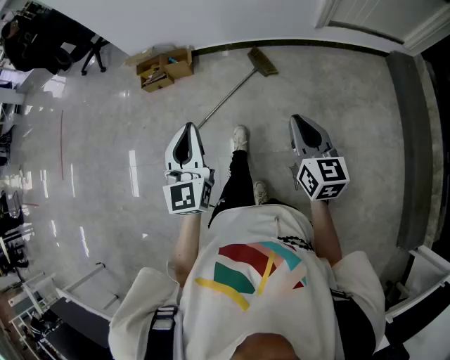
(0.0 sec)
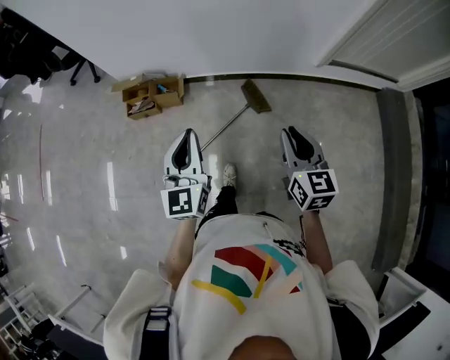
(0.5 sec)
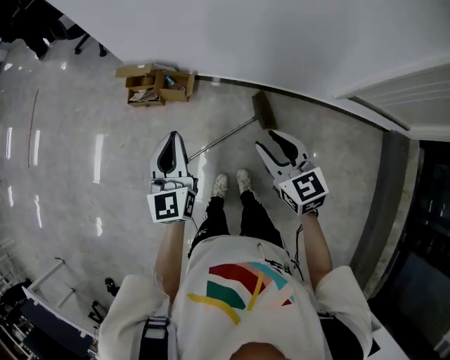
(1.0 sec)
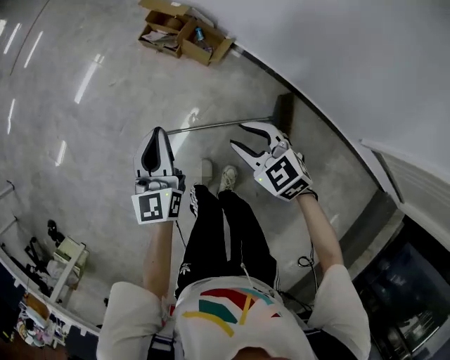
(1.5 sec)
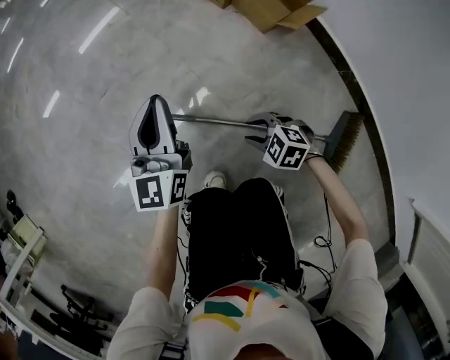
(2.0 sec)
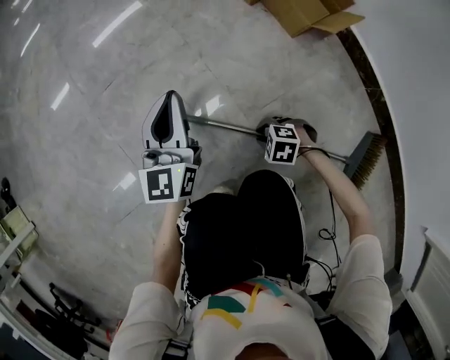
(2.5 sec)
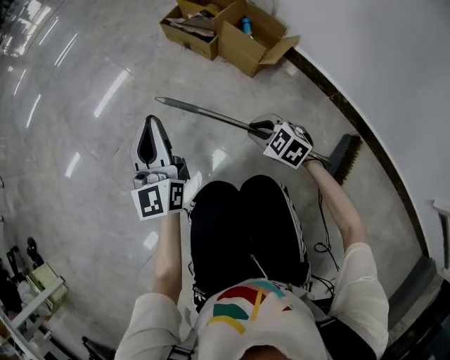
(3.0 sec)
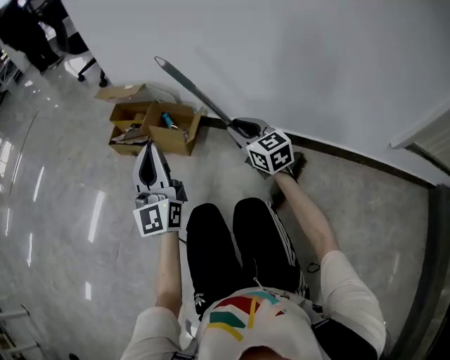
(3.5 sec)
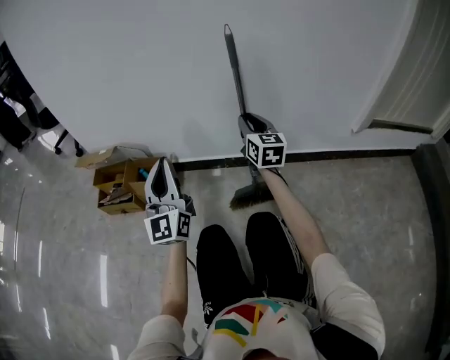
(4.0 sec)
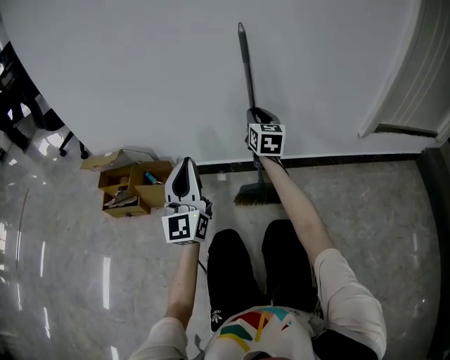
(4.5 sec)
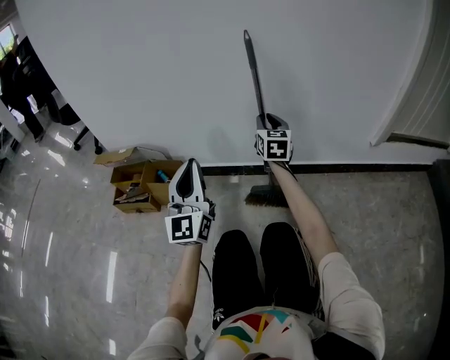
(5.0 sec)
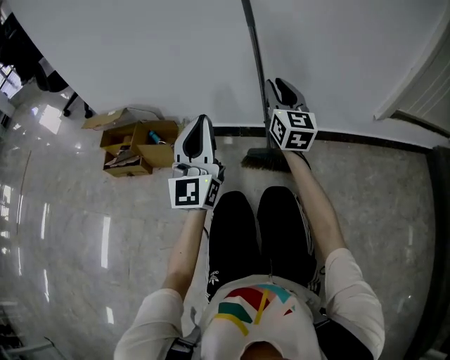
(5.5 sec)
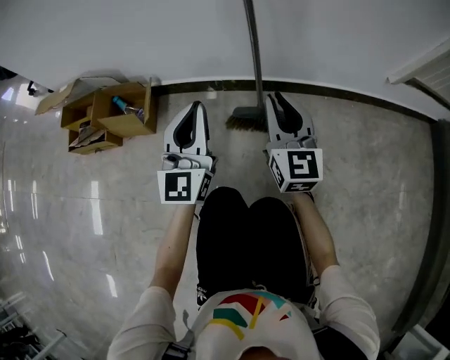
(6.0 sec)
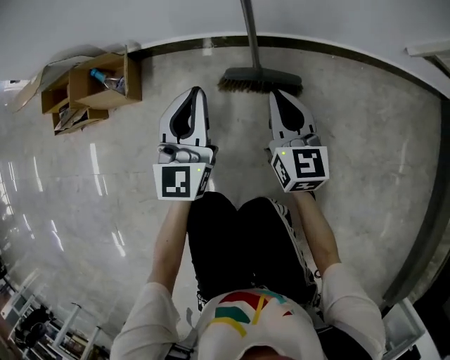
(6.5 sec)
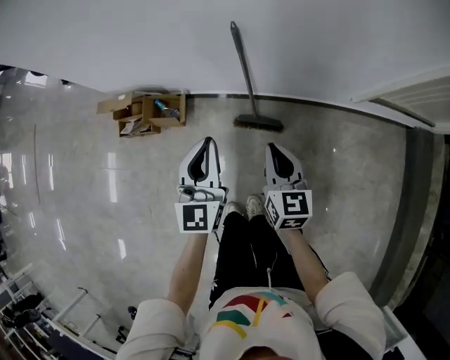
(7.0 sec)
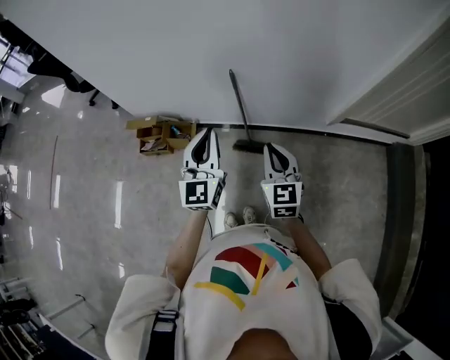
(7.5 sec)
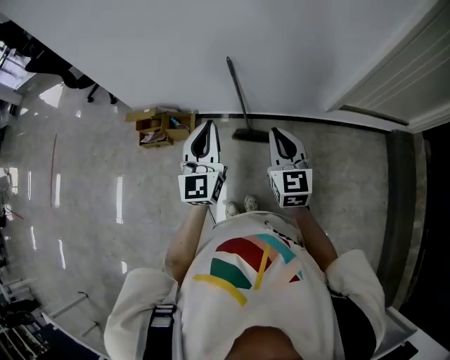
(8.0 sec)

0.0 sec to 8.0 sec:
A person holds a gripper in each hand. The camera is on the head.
0.0 sec to 2.0 sec: Both grippers are carried about 50 cm. Both grippers move downward, approximately 70 cm. The left gripper rotates roughly 60 degrees. Meanwhile the right gripper tips its fingers downward by roughly 40 degrees, and opens its fingers.
2.0 sec to 4.0 sec: The left gripper moves roughly 40 cm, and changes its angle by about 60 degrees. The right gripper changes place by about 60 cm, and tips its fingers upward by some 60 degrees.
4.0 sec to 6.0 sec: The right gripper travels downward and backward by approximately 15 cm, while the left gripper moves downward and to the right, approximately 20 cm.
6.0 sec to 8.0 sec: Both grippers travel together upward, about 60 cm.

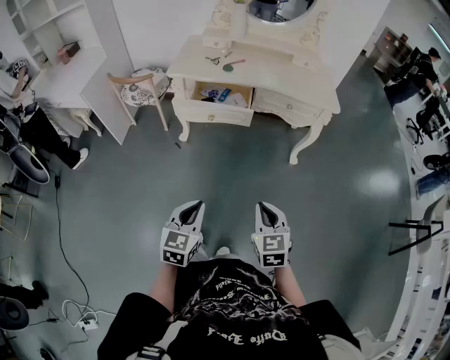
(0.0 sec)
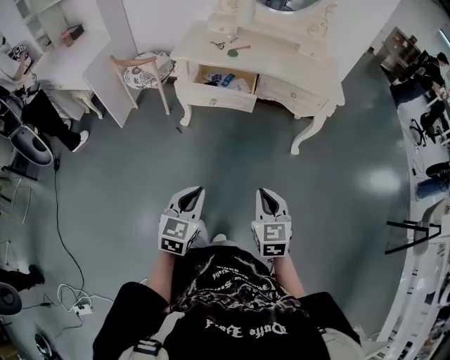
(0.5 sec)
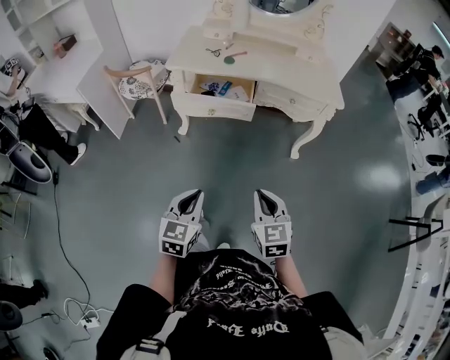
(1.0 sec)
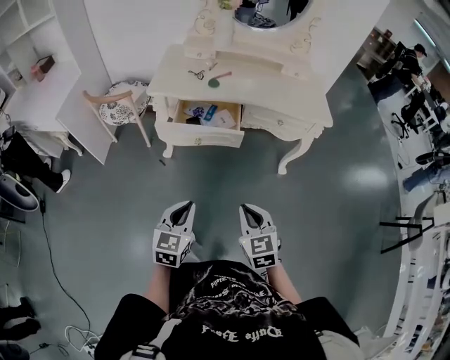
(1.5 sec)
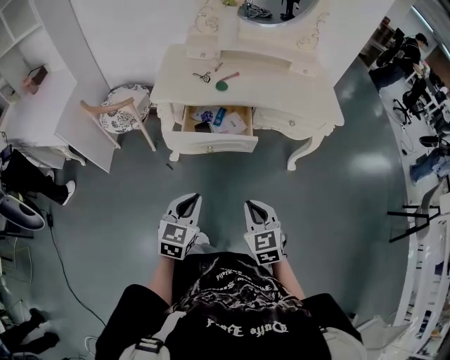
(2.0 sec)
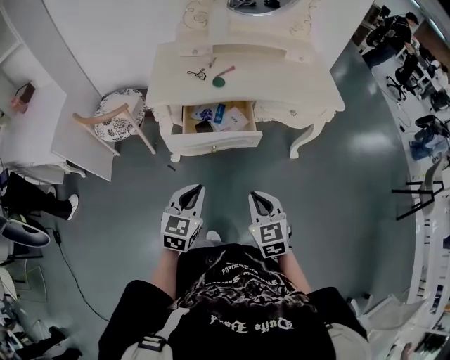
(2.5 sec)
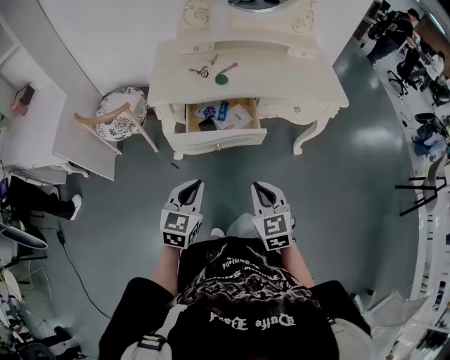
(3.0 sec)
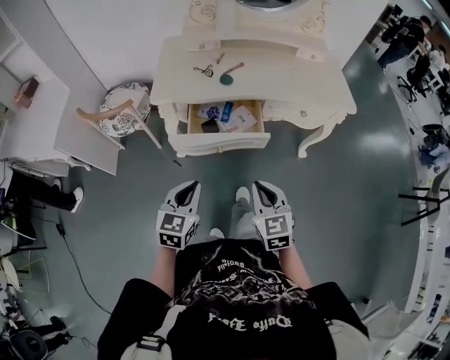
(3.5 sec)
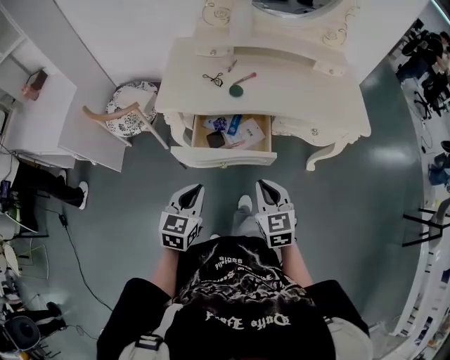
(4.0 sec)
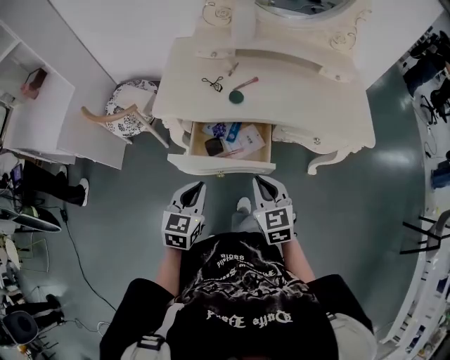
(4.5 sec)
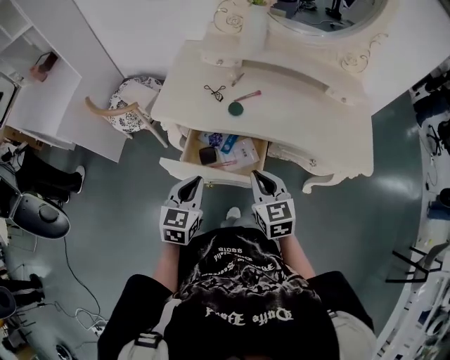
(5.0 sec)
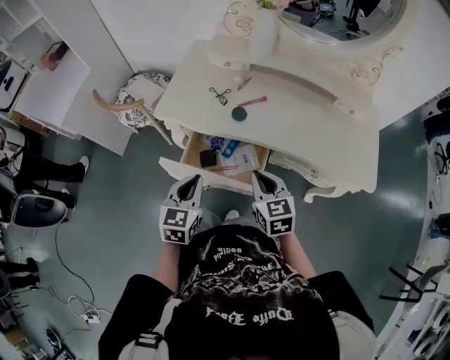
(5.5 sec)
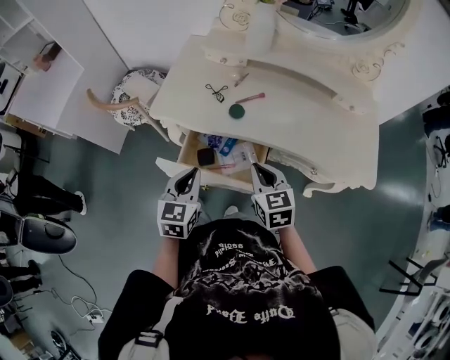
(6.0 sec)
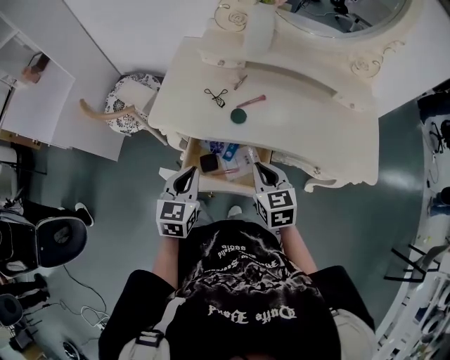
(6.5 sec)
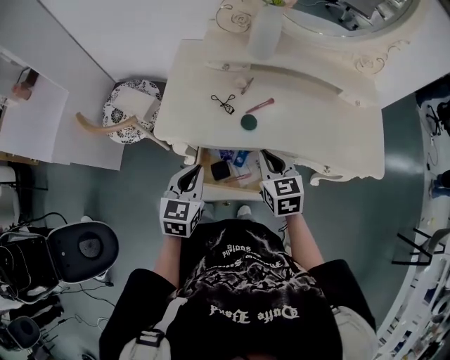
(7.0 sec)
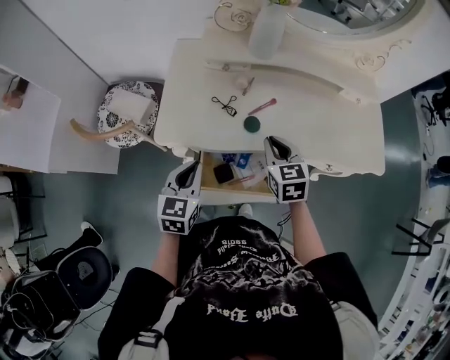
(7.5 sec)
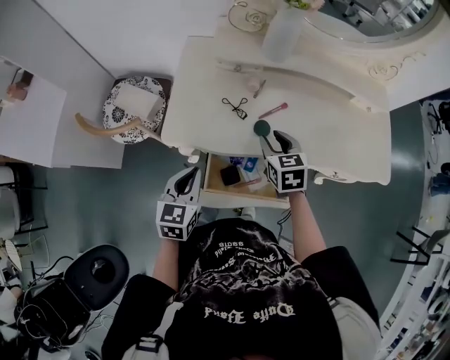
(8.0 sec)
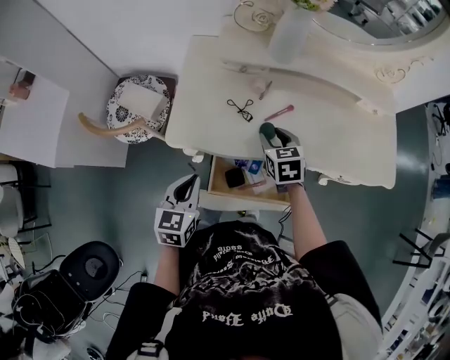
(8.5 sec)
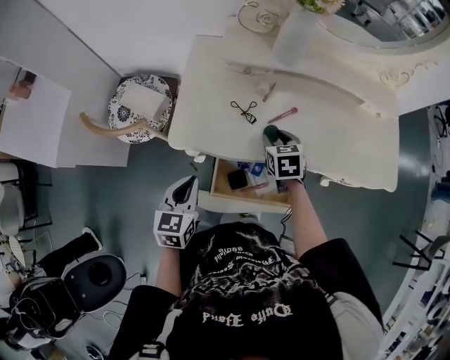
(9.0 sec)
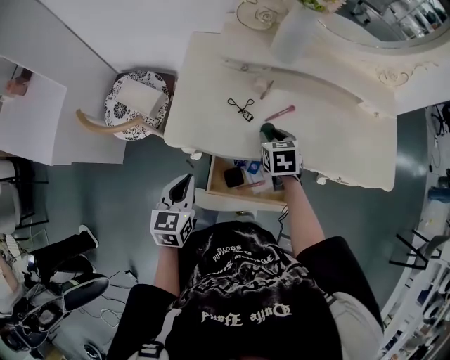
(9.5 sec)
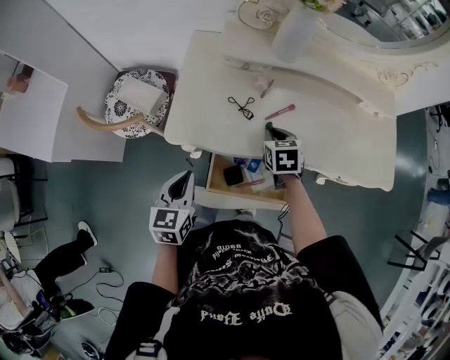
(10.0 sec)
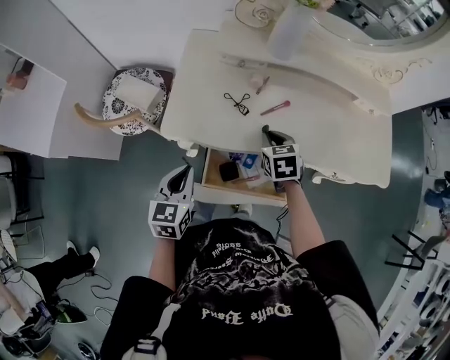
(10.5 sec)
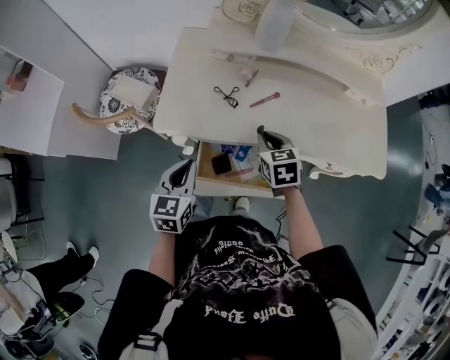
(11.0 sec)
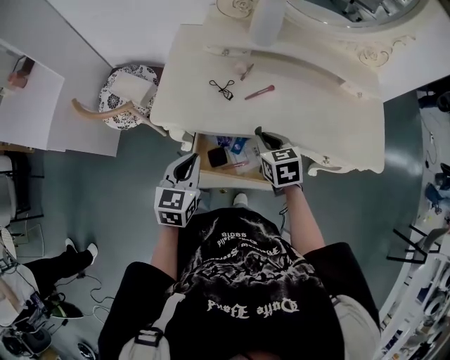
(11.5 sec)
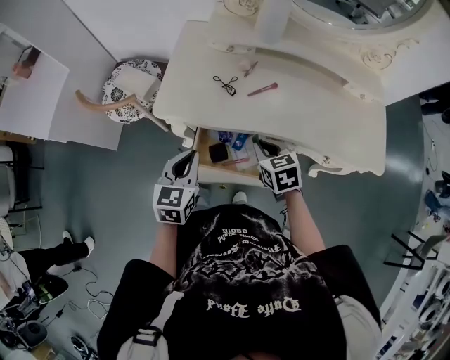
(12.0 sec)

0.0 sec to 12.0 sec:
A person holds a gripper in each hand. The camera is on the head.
0.0 sec to 2.0 sec: The right gripper goes some 20 cm forward and to the left. Meanwhile the left gripper shifts roughly 20 cm forward.
2.0 sec to 4.0 sec: The grippers both shift forward by roughly 15 cm.
4.0 sec to 6.0 sec: The right gripper travels forward by approximately 15 cm. The left gripper travels forward and to the right by some 15 cm.
6.0 sec to 8.0 sec: The right gripper shifts approximately 15 cm forward, and opens; the left gripper moves to the left and forward, about 15 cm.
8.0 sec to 10.0 sec: The right gripper is displaced downward by roughly 5 cm, and closes.
10.0 sec to 12.0 sec: The left gripper moves to the right, roughly 5 cm, while the right gripper travels backward by approximately 15 cm.

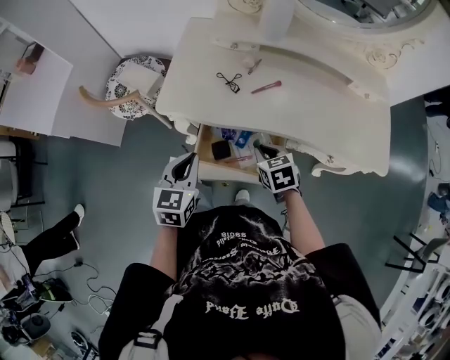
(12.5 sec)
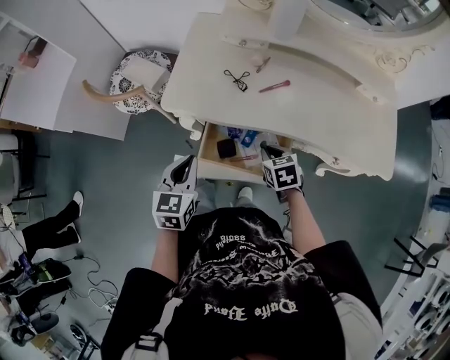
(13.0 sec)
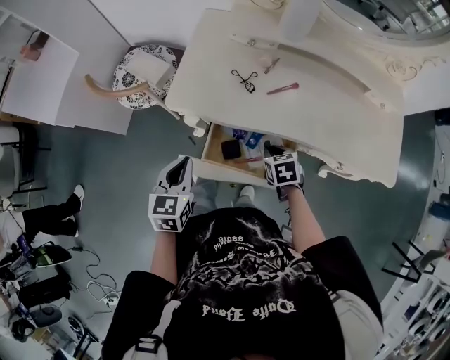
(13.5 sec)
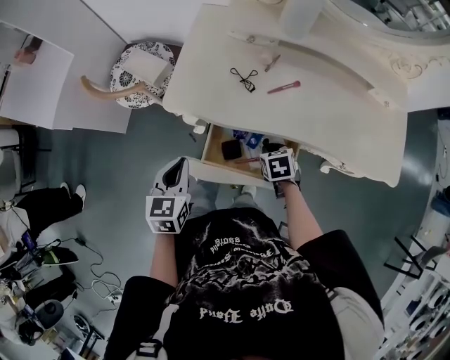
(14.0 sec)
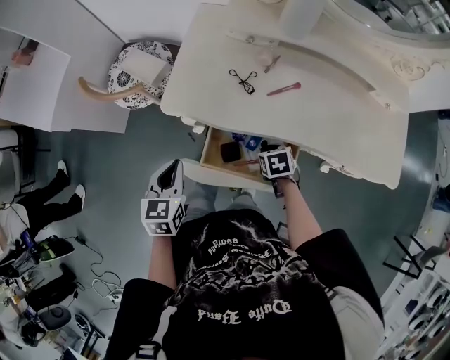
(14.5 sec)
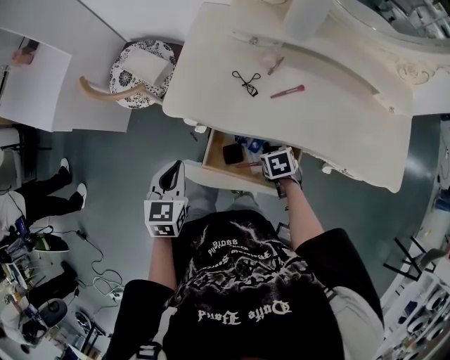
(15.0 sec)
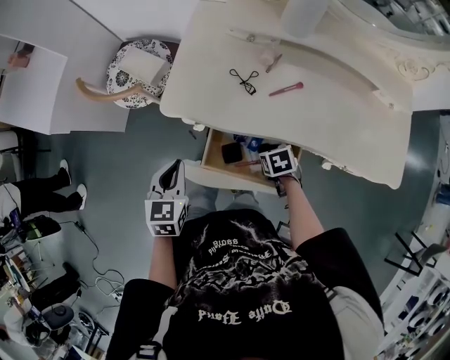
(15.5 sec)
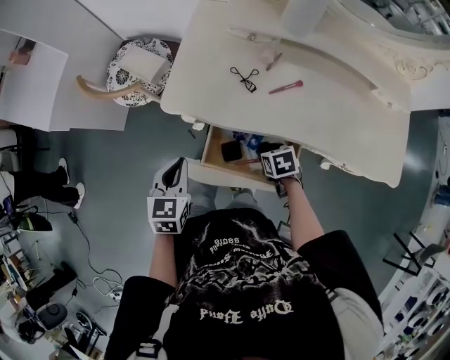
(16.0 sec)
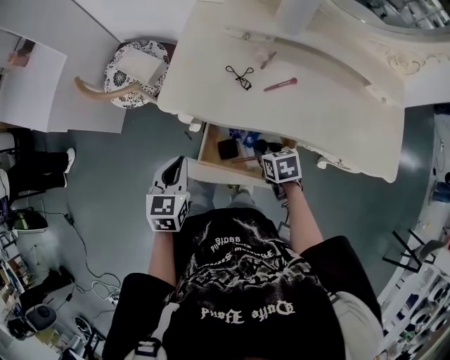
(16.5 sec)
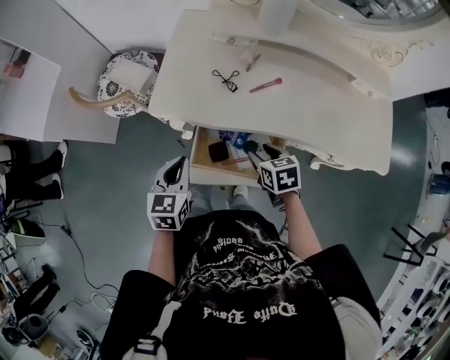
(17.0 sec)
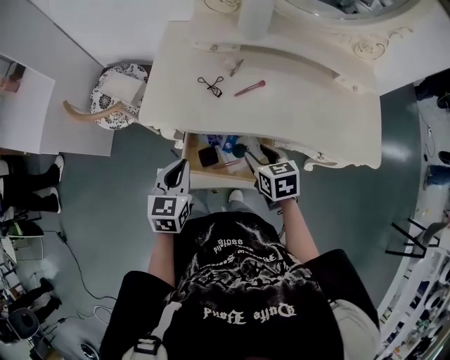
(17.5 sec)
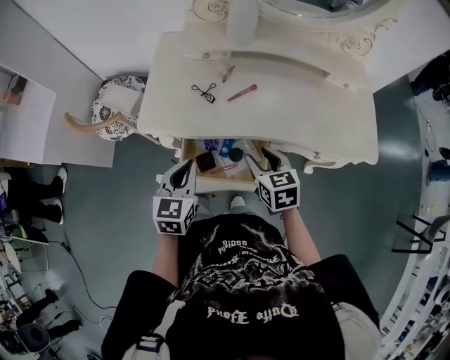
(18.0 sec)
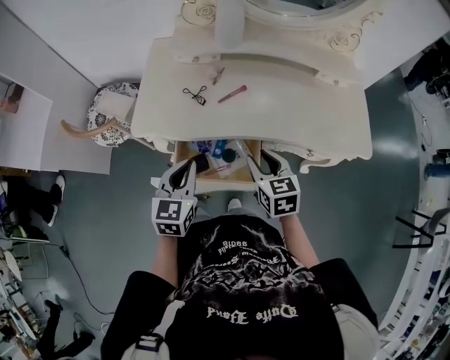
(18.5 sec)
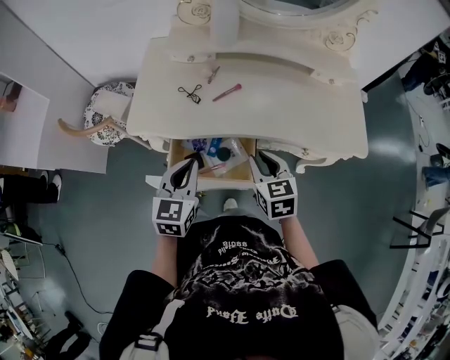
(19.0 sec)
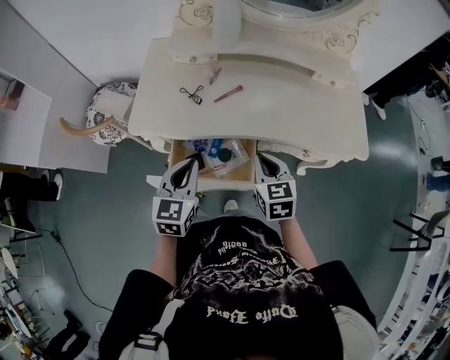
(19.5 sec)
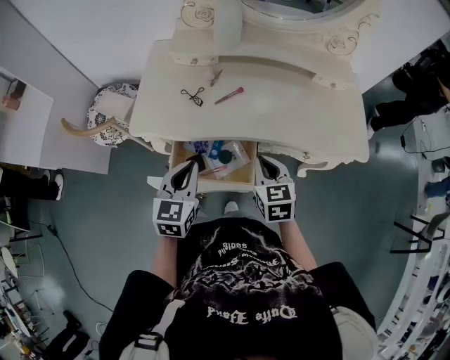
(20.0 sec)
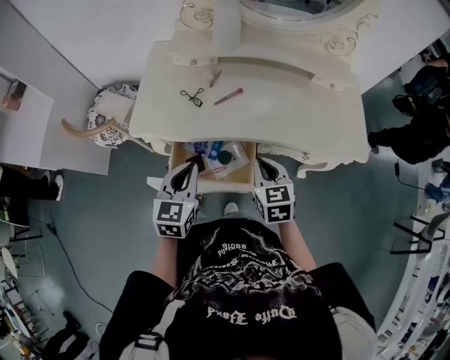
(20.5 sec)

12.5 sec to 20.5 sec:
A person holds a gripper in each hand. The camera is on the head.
12.5 sec to 14.5 sec: The right gripper is displaced downward by some 10 cm; the left gripper shifts roughly 5 cm to the left.
14.5 sec to 16.5 sec: The right gripper opens its fingers.
16.5 sec to 18.5 sec: The left gripper heads to the right and upward, covering approximately 15 cm; the right gripper is displaced upward and to the right by roughly 15 cm, and swivels about 30 degrees.
18.5 sec to 20.5 sec: The right gripper closes its fingers.
